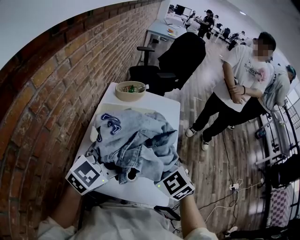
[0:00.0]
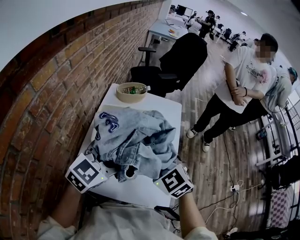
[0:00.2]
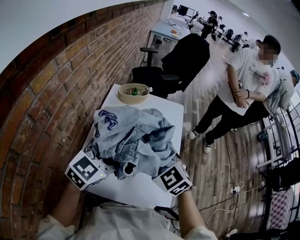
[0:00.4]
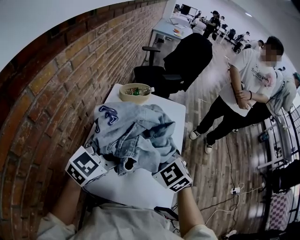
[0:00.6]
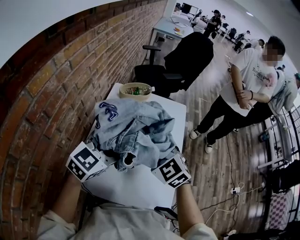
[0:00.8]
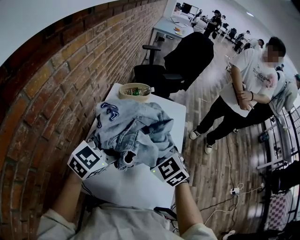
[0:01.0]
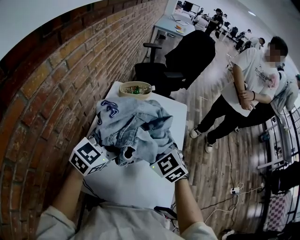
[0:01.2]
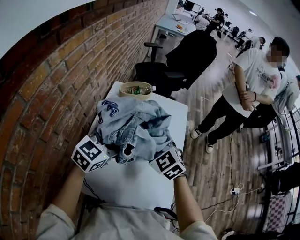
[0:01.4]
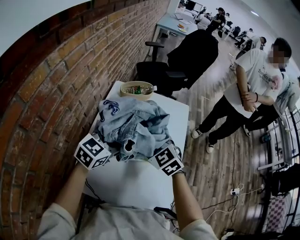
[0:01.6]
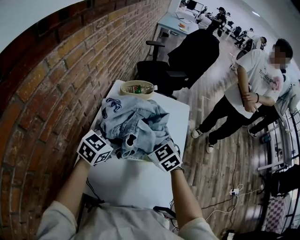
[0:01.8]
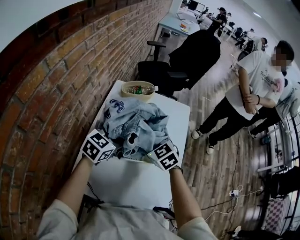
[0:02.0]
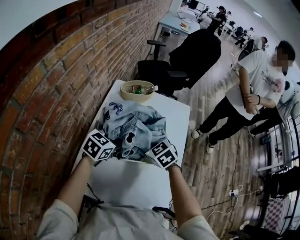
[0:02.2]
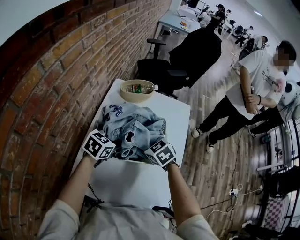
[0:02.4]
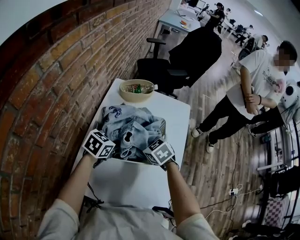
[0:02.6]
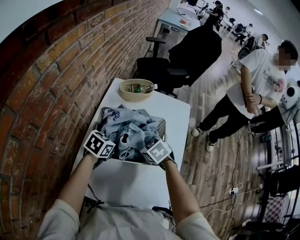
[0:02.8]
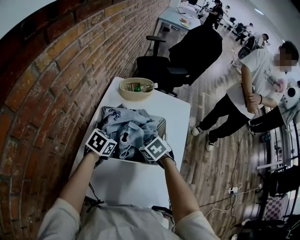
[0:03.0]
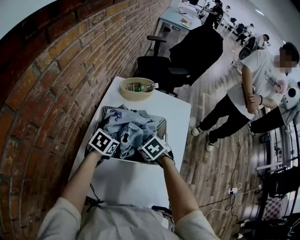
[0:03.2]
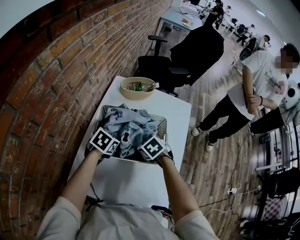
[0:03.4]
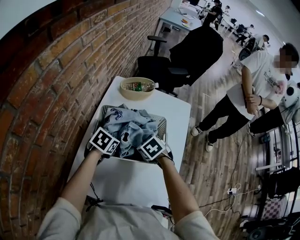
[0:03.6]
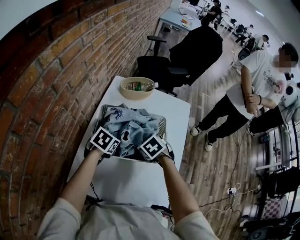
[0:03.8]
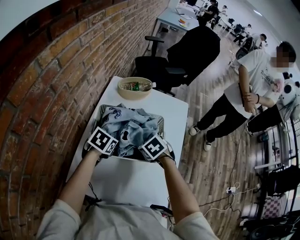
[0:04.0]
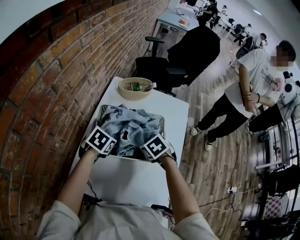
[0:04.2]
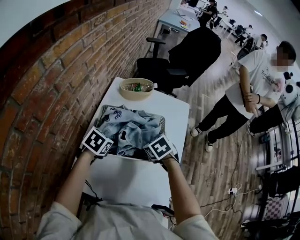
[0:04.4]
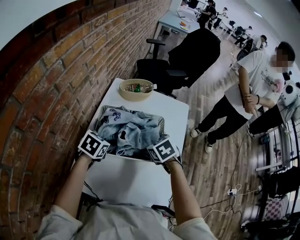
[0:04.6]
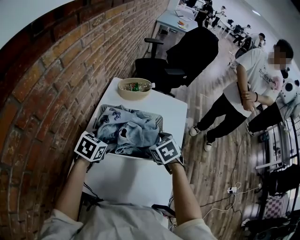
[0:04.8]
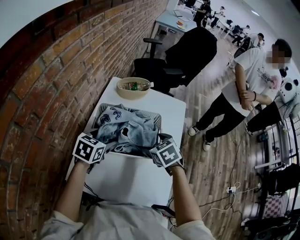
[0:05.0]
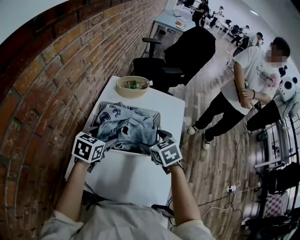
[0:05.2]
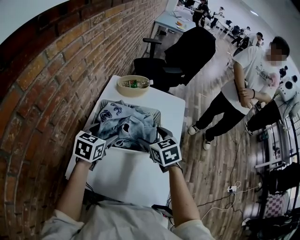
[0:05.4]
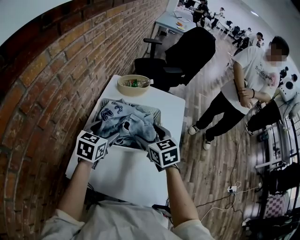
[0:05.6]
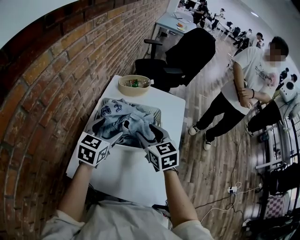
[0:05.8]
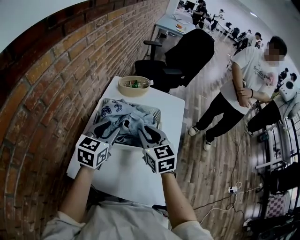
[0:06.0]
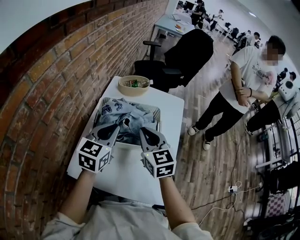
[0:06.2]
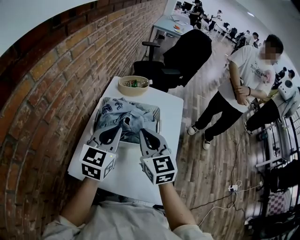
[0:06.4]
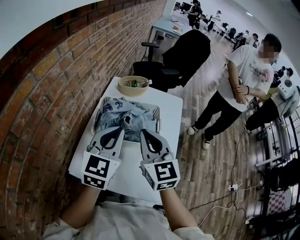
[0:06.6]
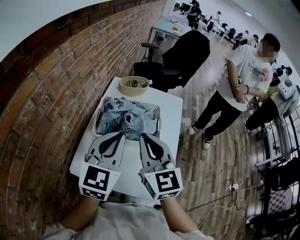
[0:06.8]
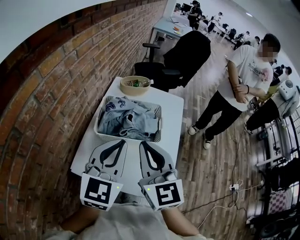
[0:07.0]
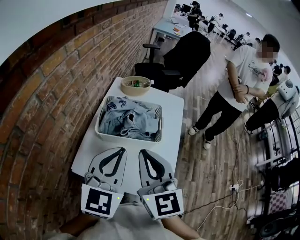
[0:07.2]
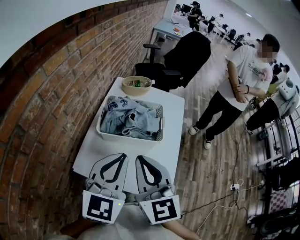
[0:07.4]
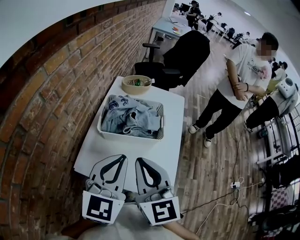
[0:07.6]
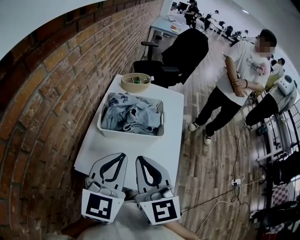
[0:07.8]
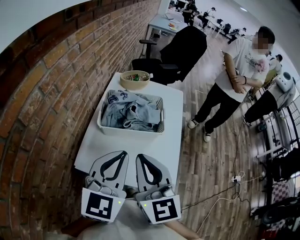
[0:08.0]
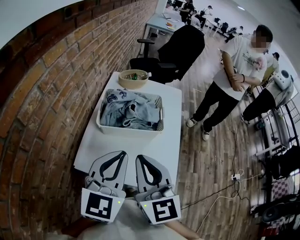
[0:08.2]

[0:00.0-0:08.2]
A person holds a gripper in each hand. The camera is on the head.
0:00.0 to 0:01.6: Both grippers move forward and downward, some 15 cm.
0:01.6 to 0:03.2: The two grippers go about 15 cm downward. The right gripper tips its fingers downward by about 30 degrees. The left gripper turns by roughly 40 degrees.
0:03.2 to 0:05.0: The right gripper travels upward and to the right by about 10 cm; the left gripper moves upward, roughly 10 cm.
0:05.0 to 0:06.6: Both grippers travel together upward and backward, approximately 20 cm. The right gripper points its fingers about 50 degrees further upward, and closes up. The left gripper tips its fingers upward by approximately 30 degrees, and closes its fingers.
0:06.6 to 0:08.2: The grippers both shift backward by roughly 15 cm.

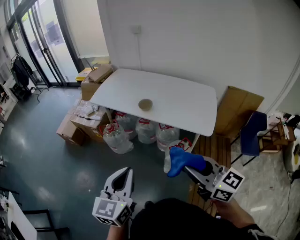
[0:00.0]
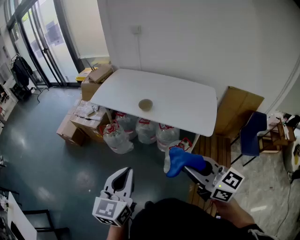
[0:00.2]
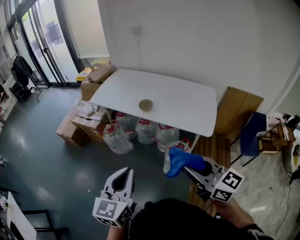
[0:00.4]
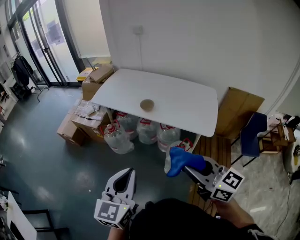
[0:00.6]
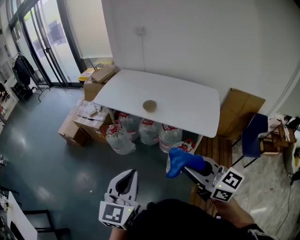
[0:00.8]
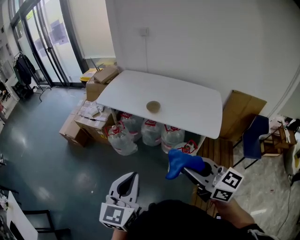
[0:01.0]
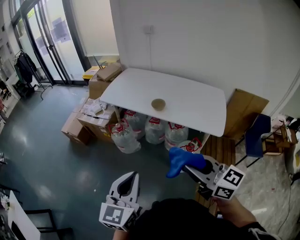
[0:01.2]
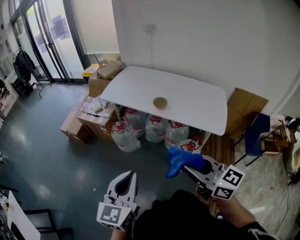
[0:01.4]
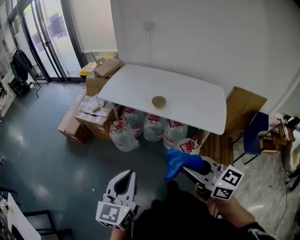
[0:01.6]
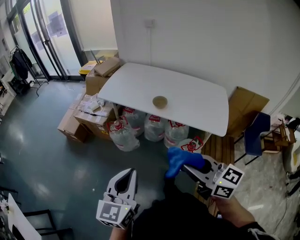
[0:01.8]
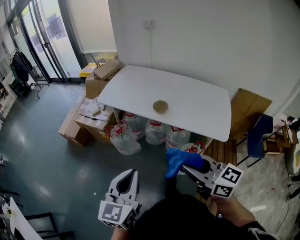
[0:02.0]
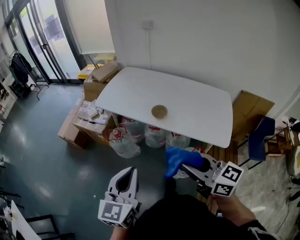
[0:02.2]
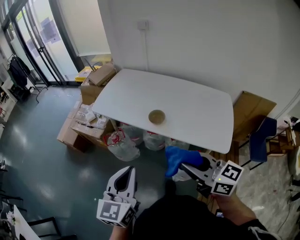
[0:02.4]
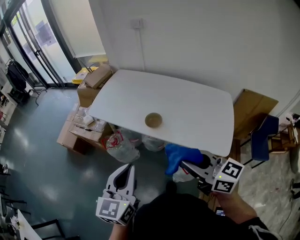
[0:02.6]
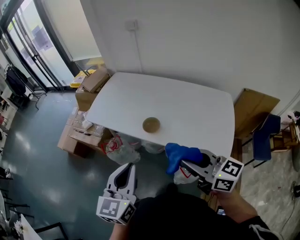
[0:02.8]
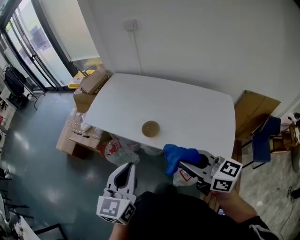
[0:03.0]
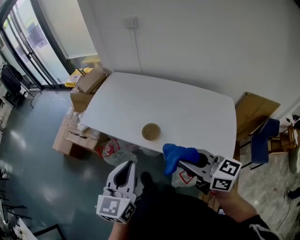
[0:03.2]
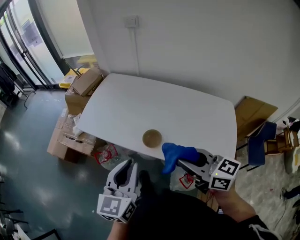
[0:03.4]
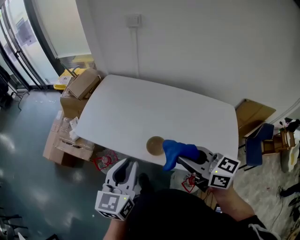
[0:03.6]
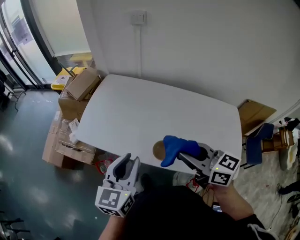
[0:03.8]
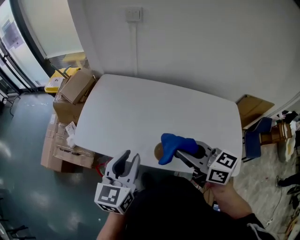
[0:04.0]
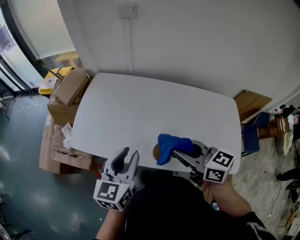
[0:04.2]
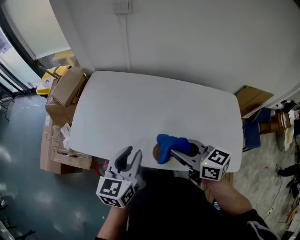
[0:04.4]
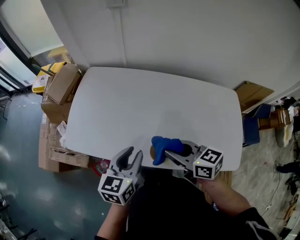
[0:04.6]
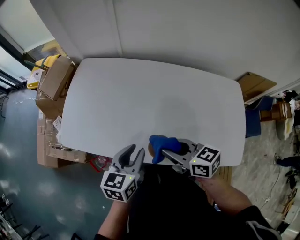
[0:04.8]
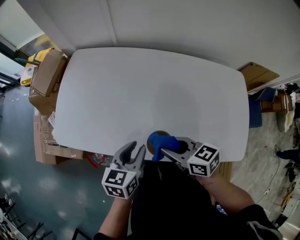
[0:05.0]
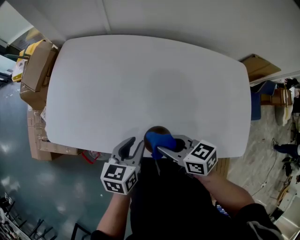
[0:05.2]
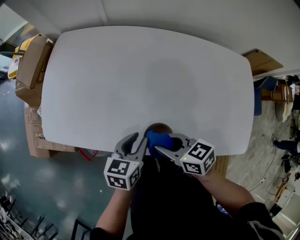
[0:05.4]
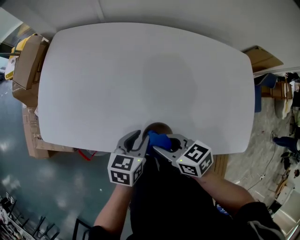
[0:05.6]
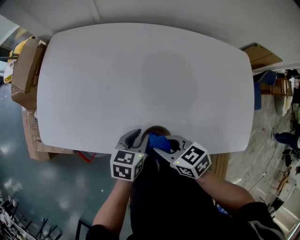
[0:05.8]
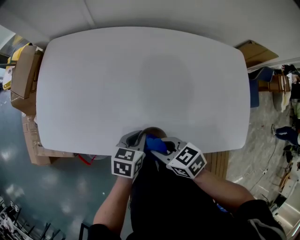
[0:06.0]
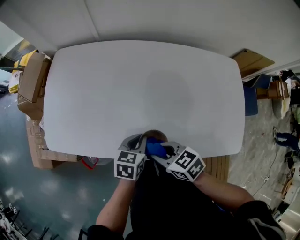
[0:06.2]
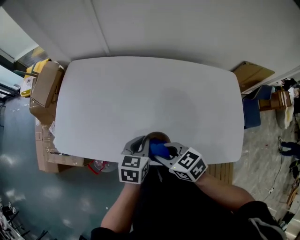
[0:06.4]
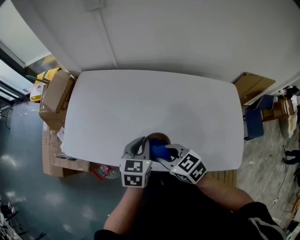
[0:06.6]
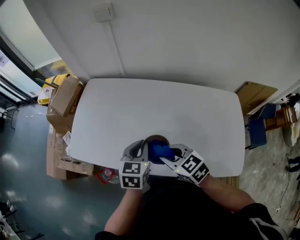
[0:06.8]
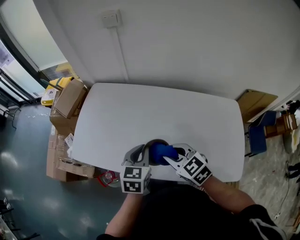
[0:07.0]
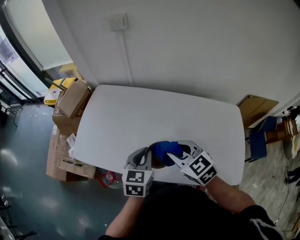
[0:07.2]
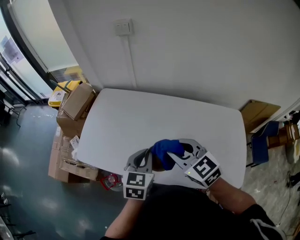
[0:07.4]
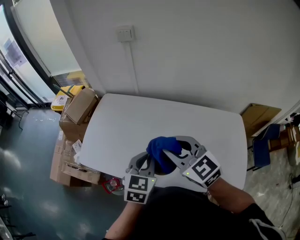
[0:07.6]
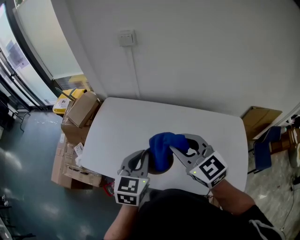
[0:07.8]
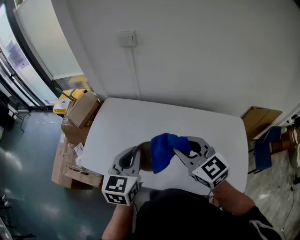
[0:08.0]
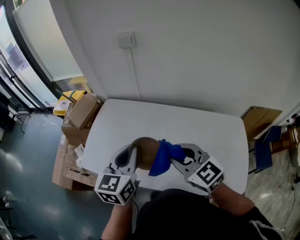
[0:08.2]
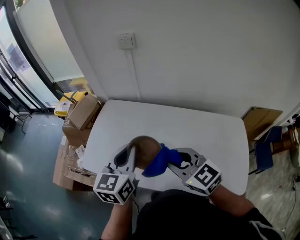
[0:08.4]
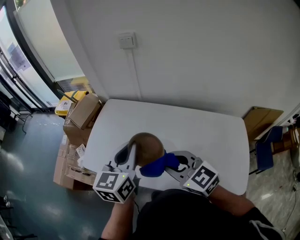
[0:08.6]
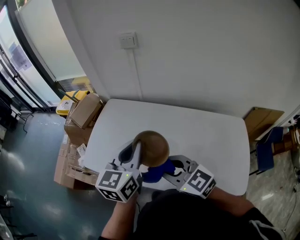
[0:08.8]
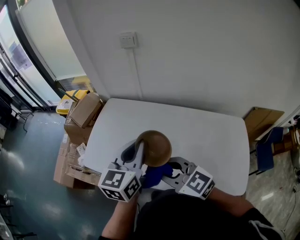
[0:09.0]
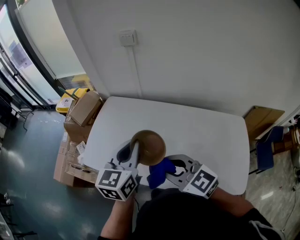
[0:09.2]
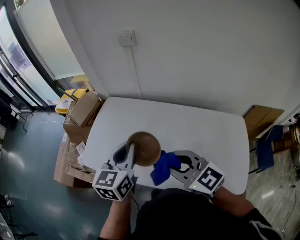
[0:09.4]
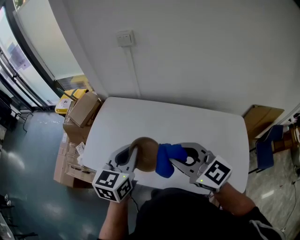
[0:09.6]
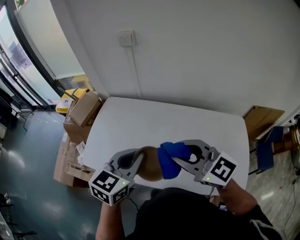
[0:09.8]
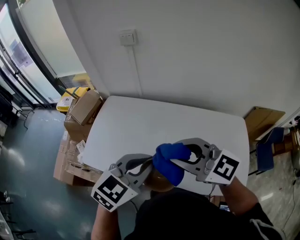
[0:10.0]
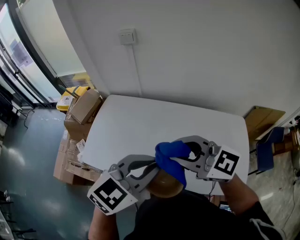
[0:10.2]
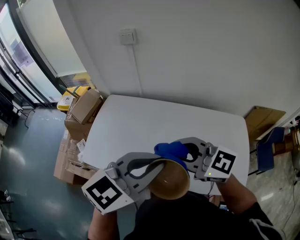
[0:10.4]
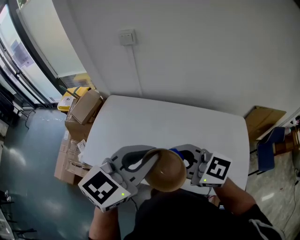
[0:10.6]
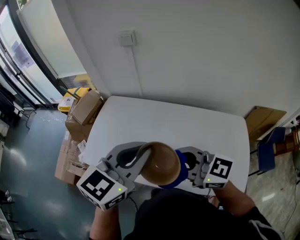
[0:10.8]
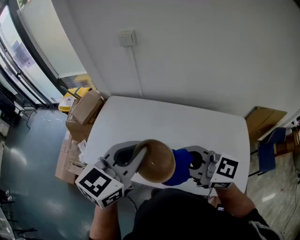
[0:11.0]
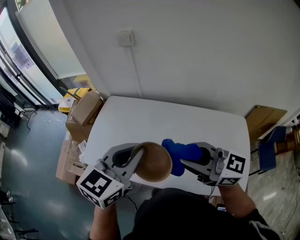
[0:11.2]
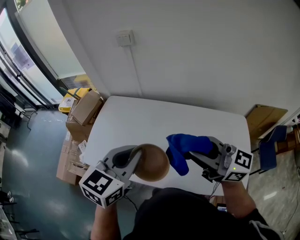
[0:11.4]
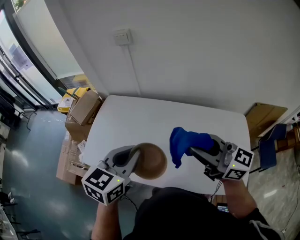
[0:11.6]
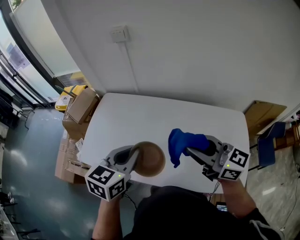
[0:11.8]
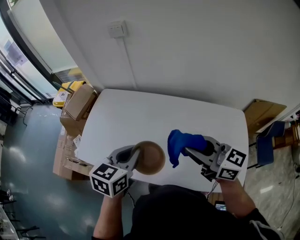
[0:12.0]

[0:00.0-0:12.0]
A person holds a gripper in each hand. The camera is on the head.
0:00.0 to 0:01.6: The grippers both shift to the left by approximately 10 cm.
0:01.6 to 0:03.0: Both grippers move forward and to the right, approximately 30 cm.
0:03.0 to 0:04.4: The two grippers go about 30 cm forward. The left gripper rotates about 20 degrees, and opens its fingers.
0:04.4 to 0:06.0: The right gripper moves downward, some 25 cm, and changes its angle by approximately 30 degrees, while the left gripper is displaced downward and to the right by about 30 cm, swivels some 30 degrees, and closes.
0:06.0 to 0:07.6: Both grippers travel together upward, approximately 30 cm. The left gripper swivels approximately 40 degrees. Meanwhile the right gripper twists some 40 degrees counterclockwise, seen from behind.
0:07.6 to 0:09.0: The left gripper moves upward, about 10 cm, and changes its angle by approximately 20 degrees. The right gripper moves backward and to the left, some 10 cm.
0:09.0 to 0:10.4: The right gripper heads upward, covering about 10 cm; the left gripper ends up about 15 cm from where it was, and swivels some 40 degrees.
0:10.4 to 0:12.0: The right gripper moves some 10 cm, and changes its angle by about 30 degrees. Meanwhile the left gripper shifts some 15 cm downward, and rotates roughly 30 degrees.

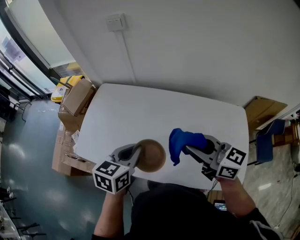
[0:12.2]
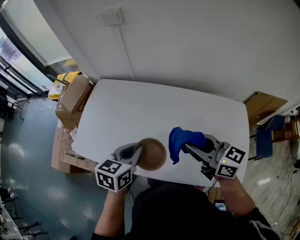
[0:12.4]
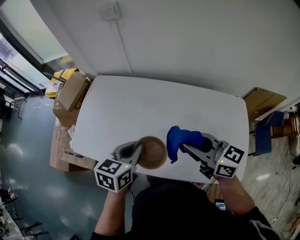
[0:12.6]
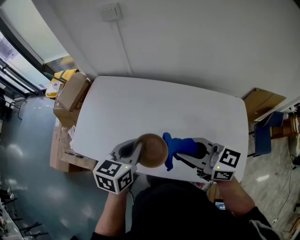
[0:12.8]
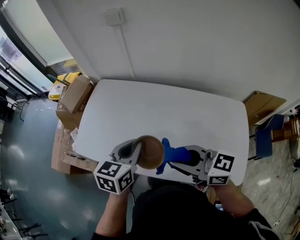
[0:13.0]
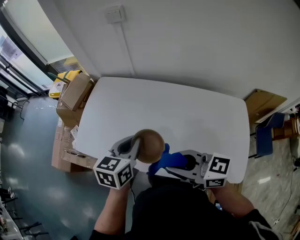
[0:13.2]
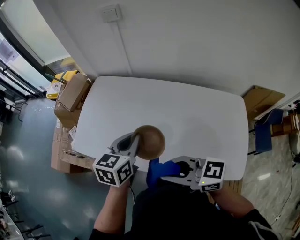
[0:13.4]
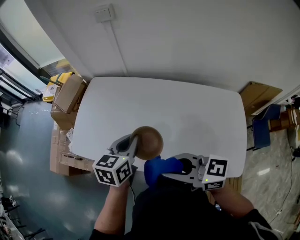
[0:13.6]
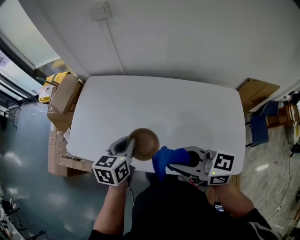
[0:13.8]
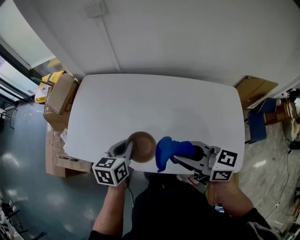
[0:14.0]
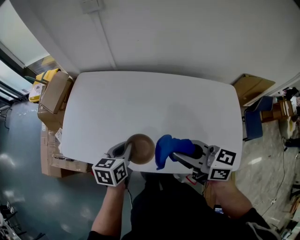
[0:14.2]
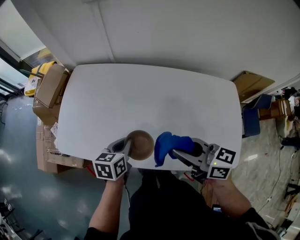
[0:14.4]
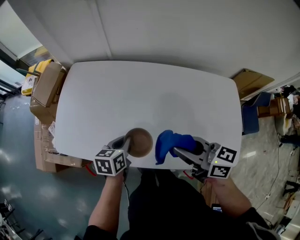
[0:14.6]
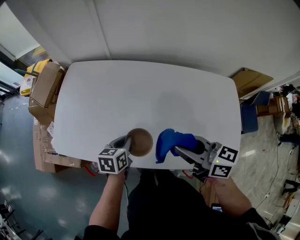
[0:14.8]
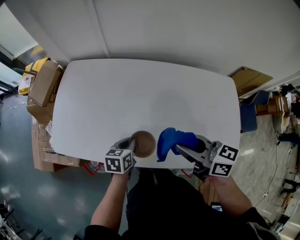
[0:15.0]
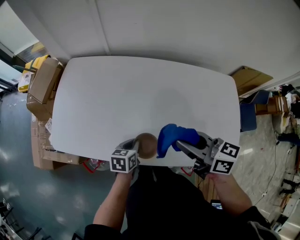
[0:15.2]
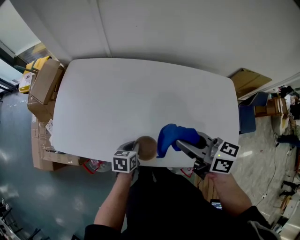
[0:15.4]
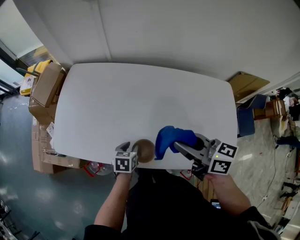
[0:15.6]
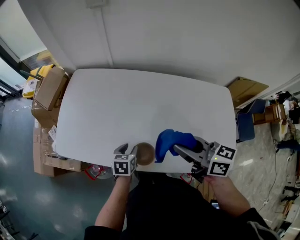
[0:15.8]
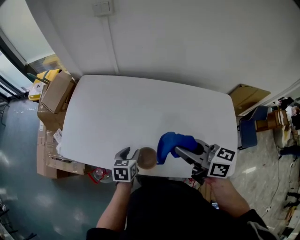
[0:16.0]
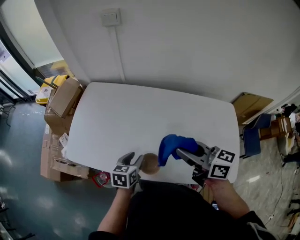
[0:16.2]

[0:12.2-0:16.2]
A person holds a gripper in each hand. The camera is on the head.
0:12.2 to 0:13.6: The right gripper goes approximately 15 cm to the left and backward.
0:13.6 to 0:14.8: The right gripper moves to the right, downward and forward, roughly 10 cm, and changes its angle by roughly 30 degrees. Meanwhile the left gripper travels downward by roughly 20 cm.
0:14.8 to 0:16.2: The right gripper heads upward, covering about 5 cm. Meanwhile the left gripper moves some 5 cm downward and comes back, and opens its fingers.
